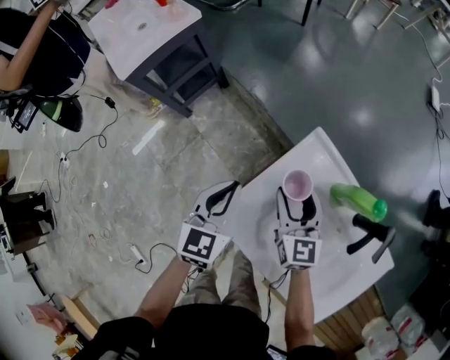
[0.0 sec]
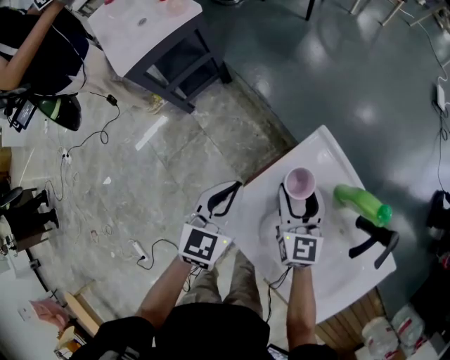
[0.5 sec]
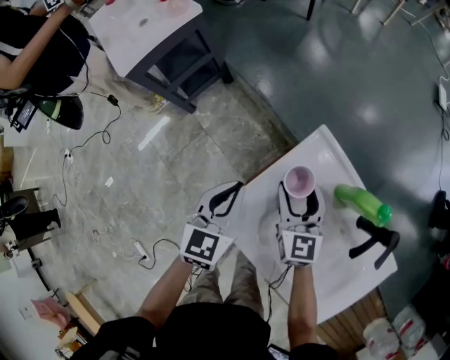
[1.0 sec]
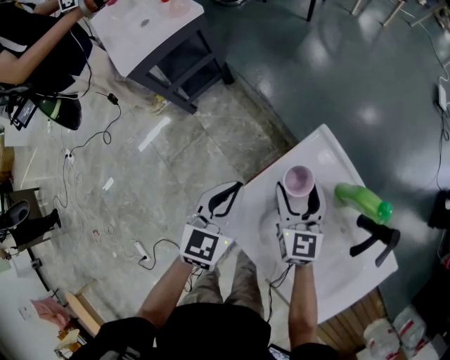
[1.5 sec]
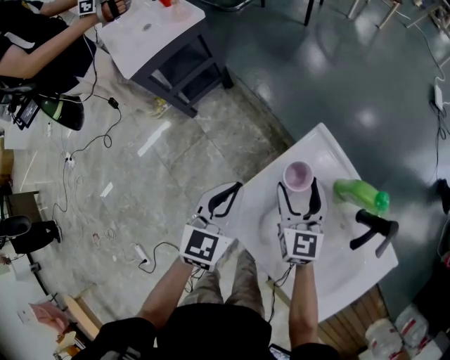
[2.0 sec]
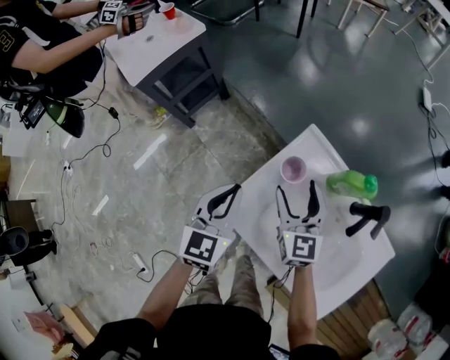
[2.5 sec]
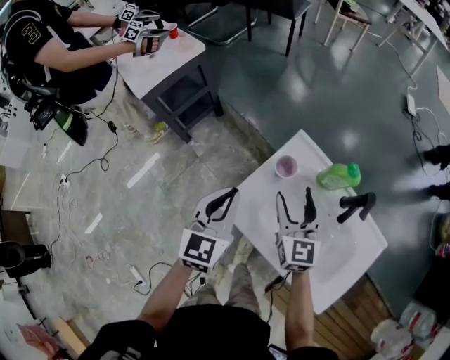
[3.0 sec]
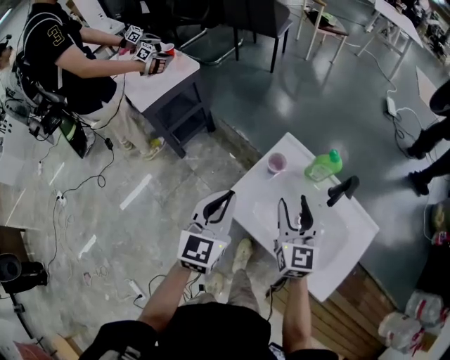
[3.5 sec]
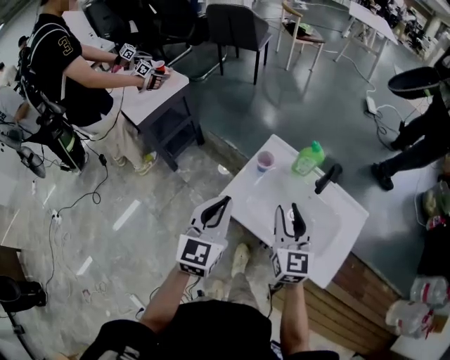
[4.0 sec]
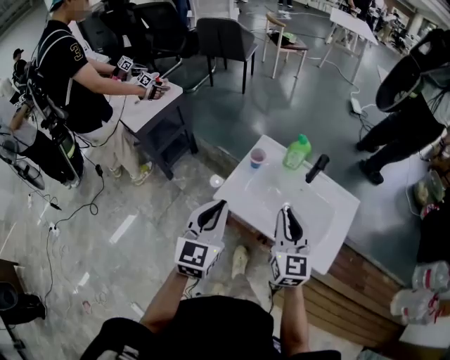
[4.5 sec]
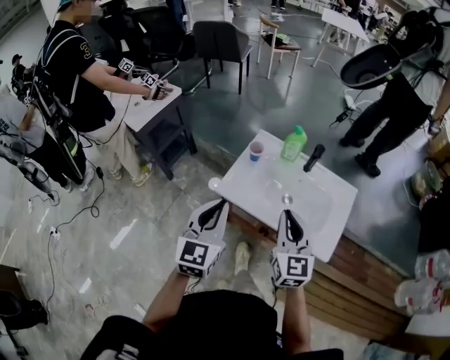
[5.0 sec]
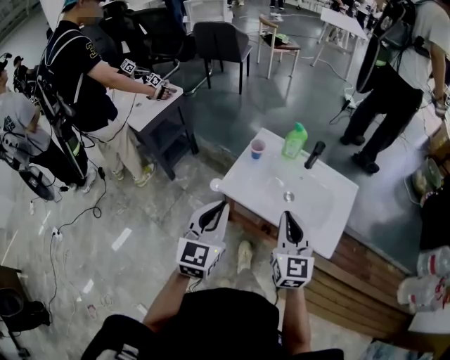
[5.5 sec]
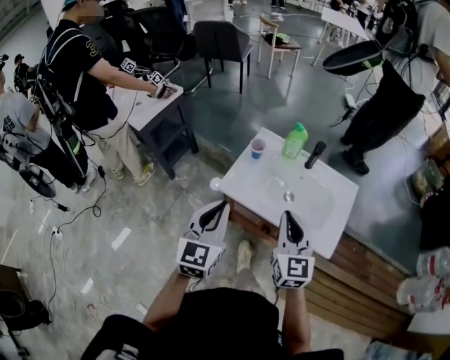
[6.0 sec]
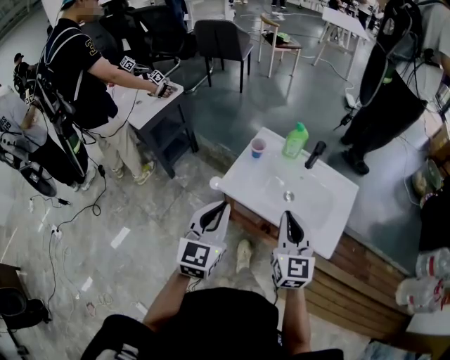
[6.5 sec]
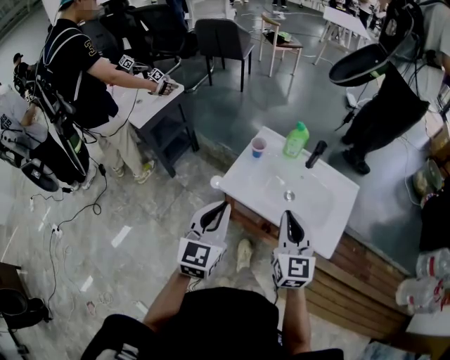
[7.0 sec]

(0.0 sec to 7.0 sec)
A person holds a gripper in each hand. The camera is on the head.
0.0 sec - 2.0 sec: The grippers make only small movements.
2.0 sec - 3.5 sec: Both grippers move upward and backward, some 20 cm.
3.5 sec - 5.0 sec: Both grippers move backward and upward, approximately 20 cm. The right gripper closes.
5.0 sec - 7.0 sec: There are only small adjustments of the grippers.

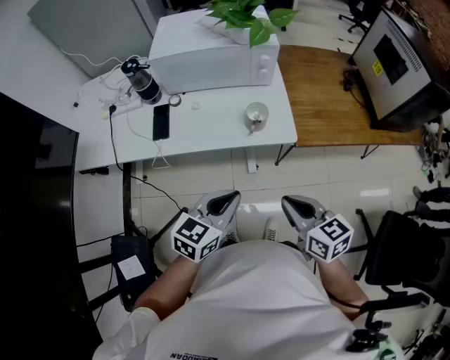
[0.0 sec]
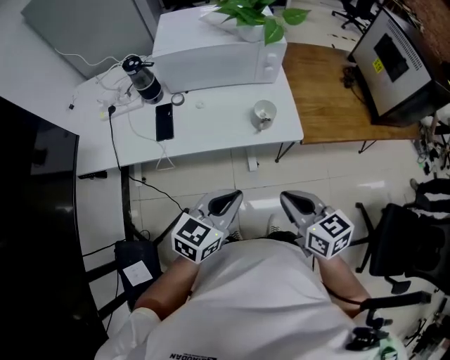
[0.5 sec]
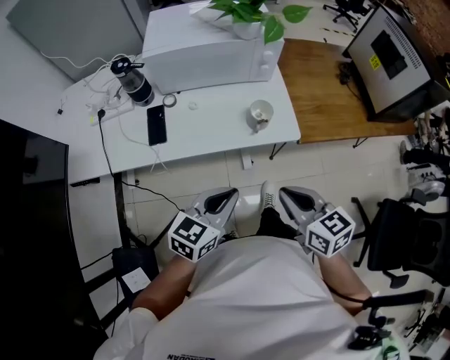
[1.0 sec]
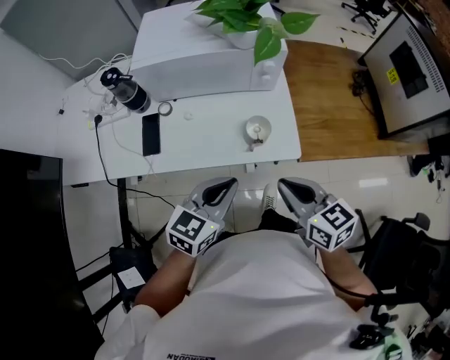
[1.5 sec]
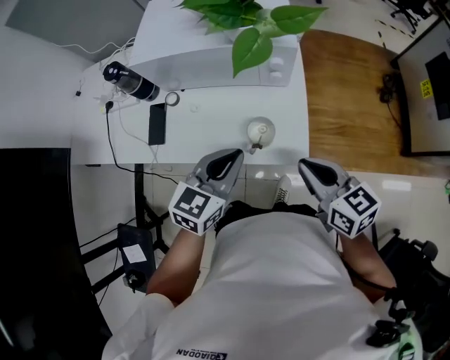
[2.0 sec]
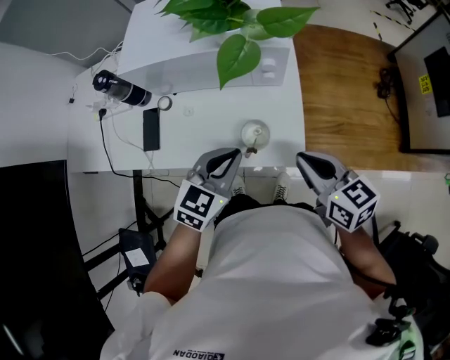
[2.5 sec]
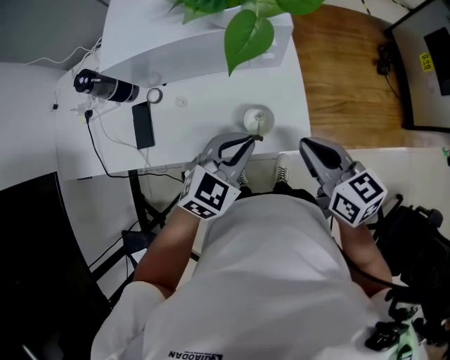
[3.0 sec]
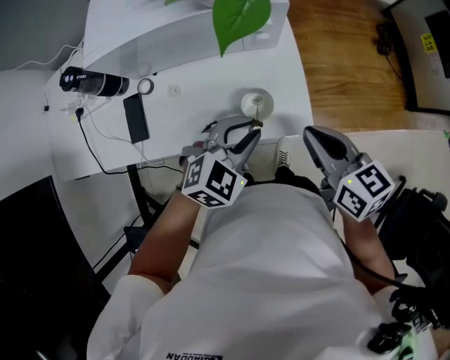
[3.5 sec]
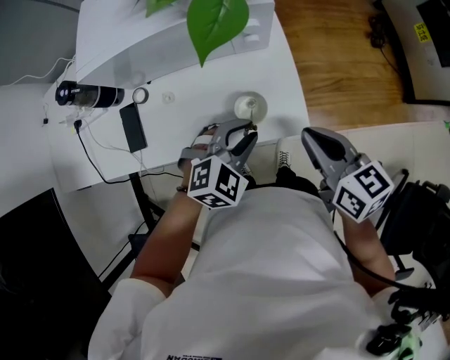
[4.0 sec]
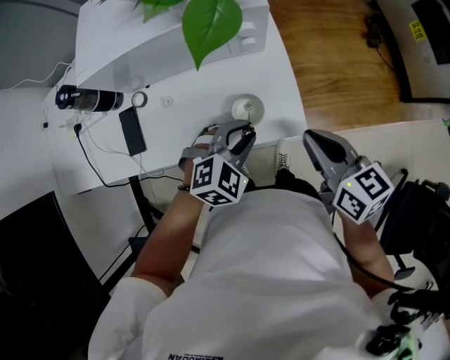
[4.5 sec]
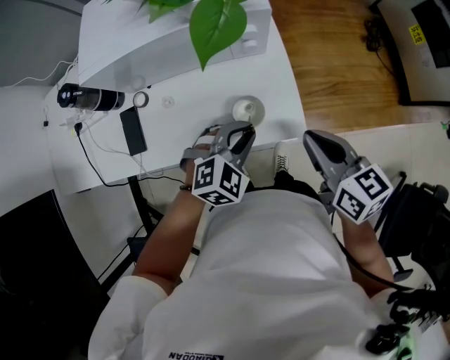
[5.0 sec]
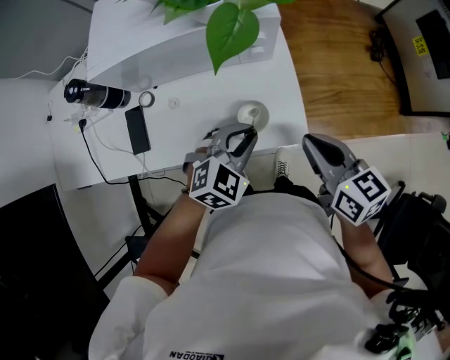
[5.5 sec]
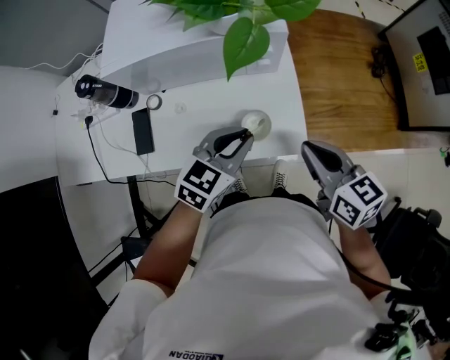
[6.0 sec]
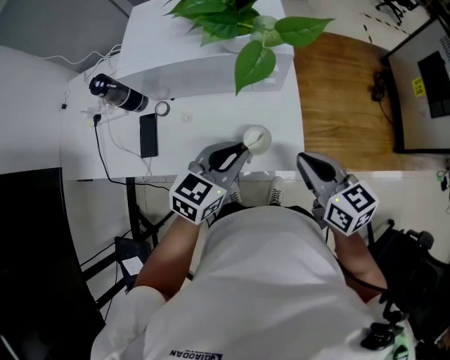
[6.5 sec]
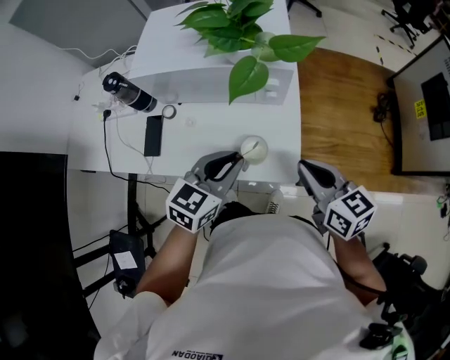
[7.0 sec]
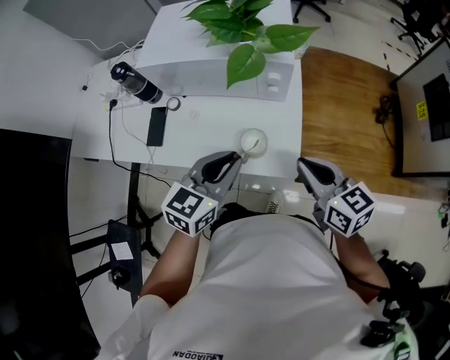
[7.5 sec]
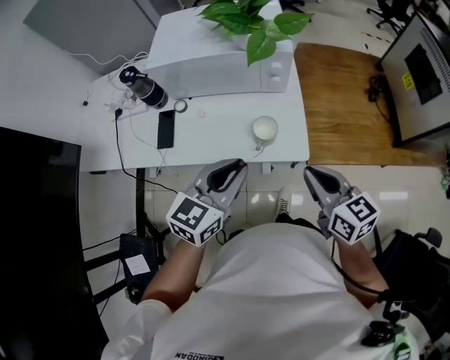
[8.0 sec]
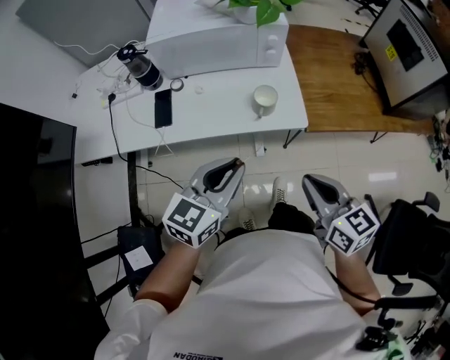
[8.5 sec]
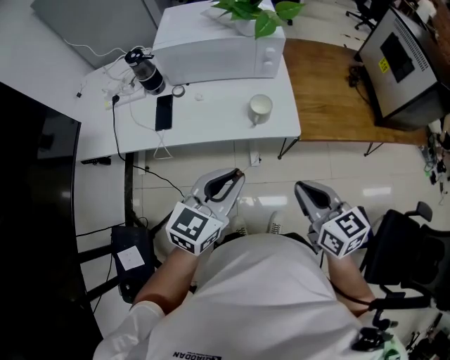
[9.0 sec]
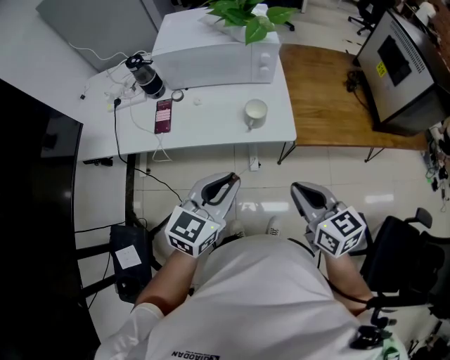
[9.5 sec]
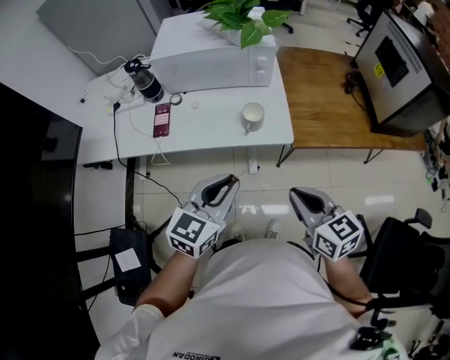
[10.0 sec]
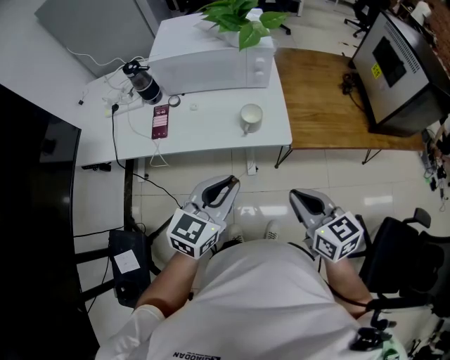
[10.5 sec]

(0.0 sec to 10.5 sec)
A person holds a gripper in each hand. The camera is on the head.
0.0 sec - 2.0 sec: The grippers both shift forward by approximately 25 cm.
2.0 sec - 4.0 sec: The left gripper heads downward, covering some 10 cm, twists roughly 40 degrees clockwise, seen from behind, and opens.
4.0 sec - 6.5 sec: The left gripper shifts approximately 10 cm upward, and turns by approximately 40 degrees.
6.5 sec - 8.5 sec: Both grippers move backward, roughly 20 cm.
8.5 sec - 10.5 sec: The left gripper ends up roughly 5 cm from where it was.

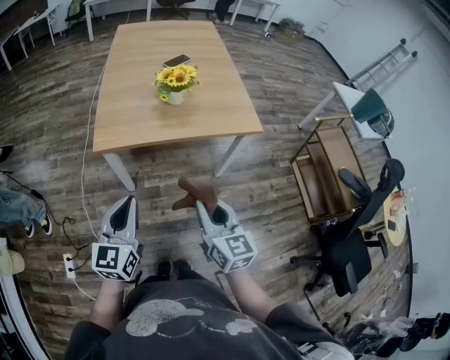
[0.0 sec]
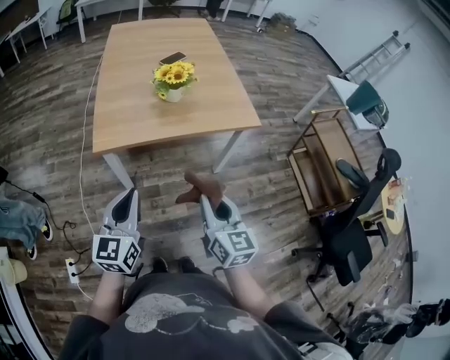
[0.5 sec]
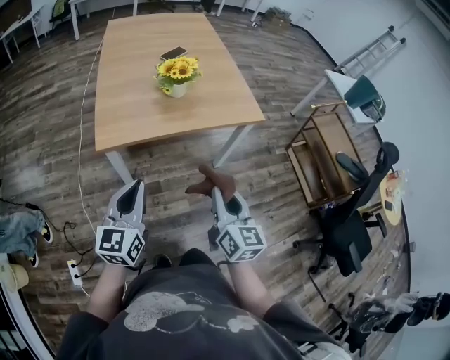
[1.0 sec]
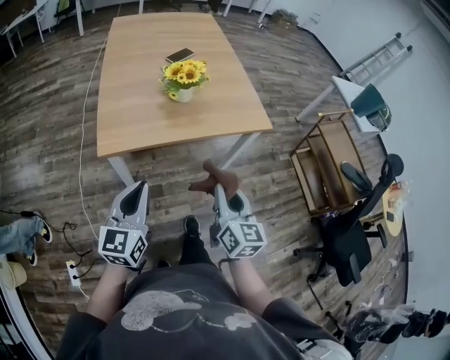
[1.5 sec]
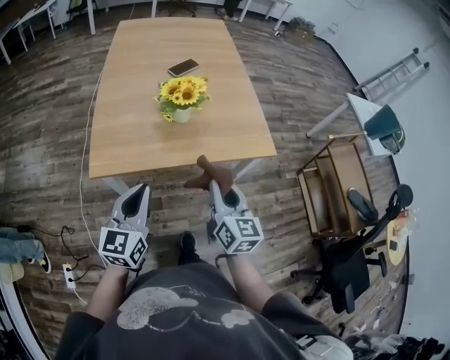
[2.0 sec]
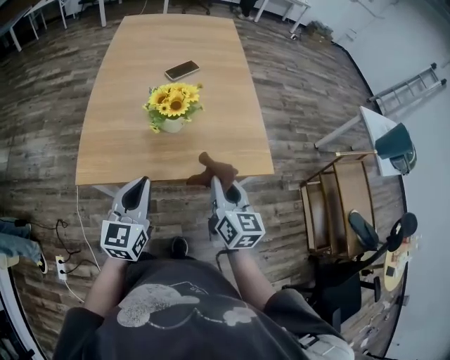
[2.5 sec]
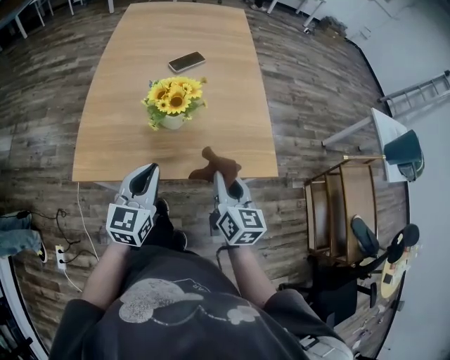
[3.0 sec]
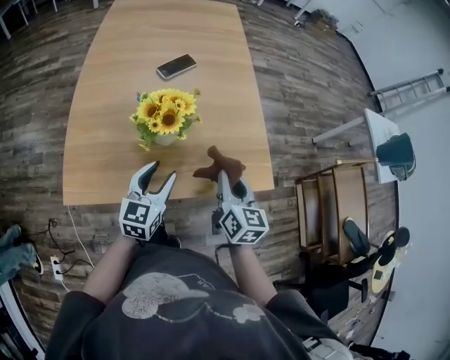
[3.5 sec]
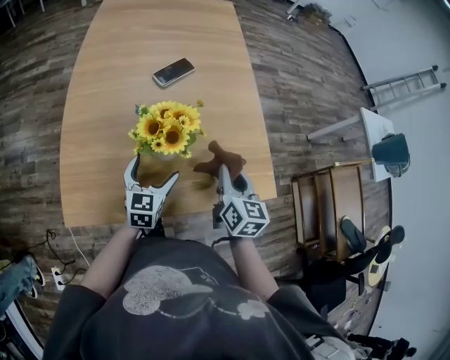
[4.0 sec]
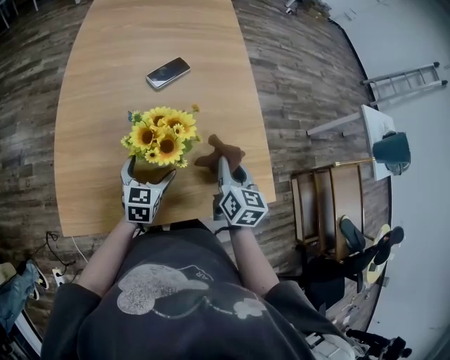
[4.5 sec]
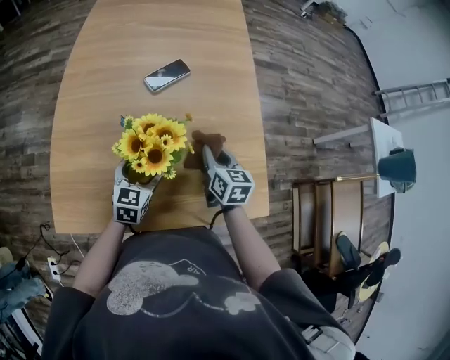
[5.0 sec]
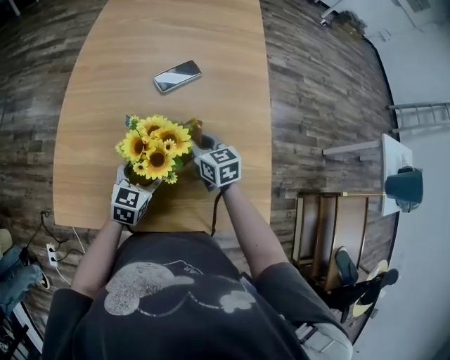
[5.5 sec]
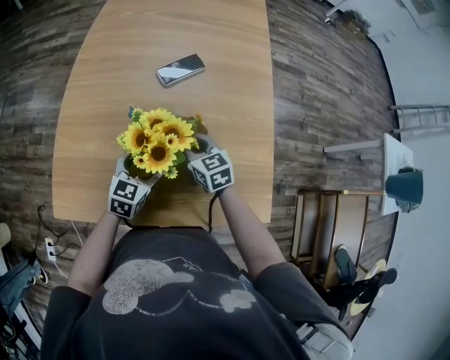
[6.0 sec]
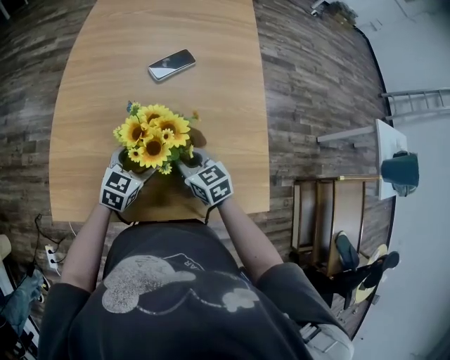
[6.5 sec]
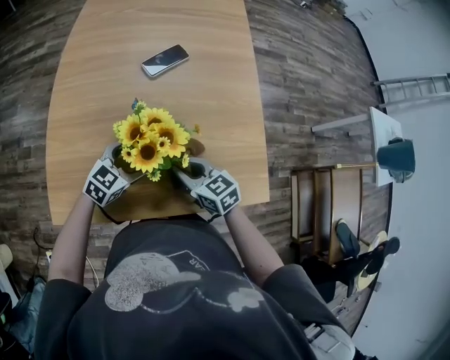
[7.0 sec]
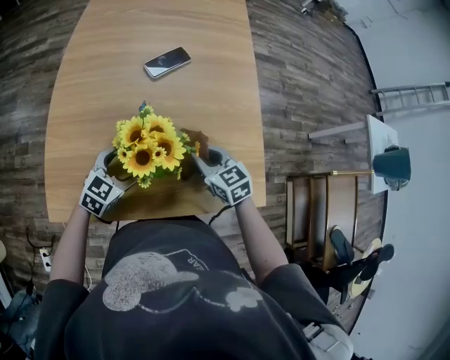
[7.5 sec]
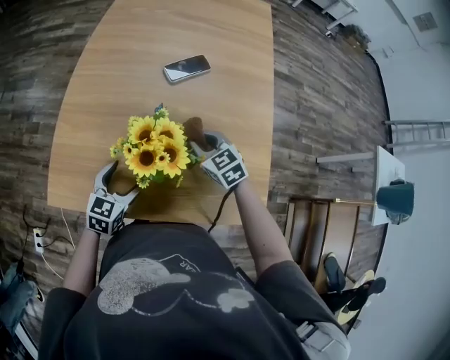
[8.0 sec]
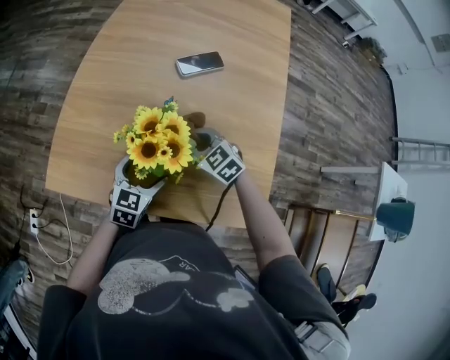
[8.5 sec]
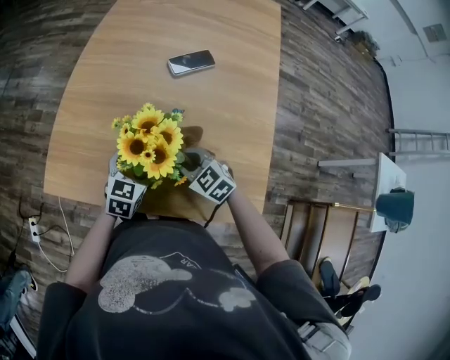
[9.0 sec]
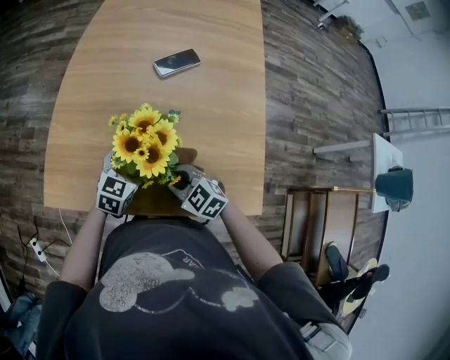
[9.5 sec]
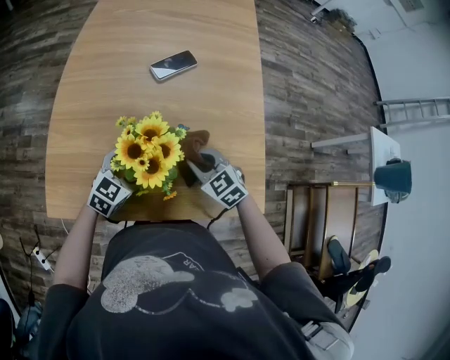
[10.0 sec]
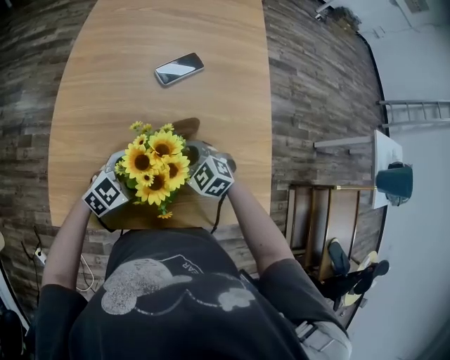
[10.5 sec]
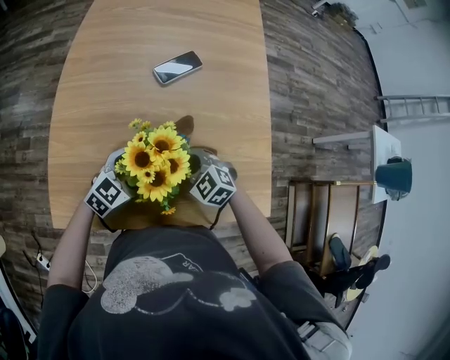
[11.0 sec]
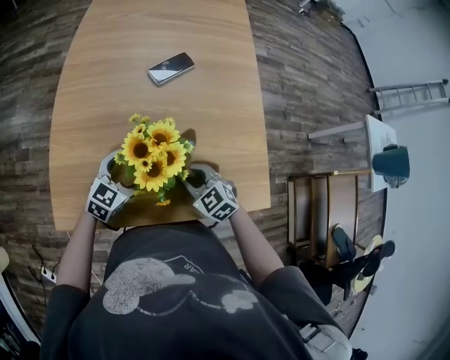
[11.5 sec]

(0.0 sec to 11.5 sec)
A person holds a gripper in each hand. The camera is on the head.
0.0 sec - 2.0 sec: The two grippers go some 20 cm forward.
2.0 sec - 4.0 sec: The left gripper travels forward and downward by about 30 cm, and opens its fingers. The right gripper goes roughly 25 cm forward.
4.0 sec - 6.0 sec: The left gripper shifts by about 5 cm. Meanwhile the right gripper goes approximately 20 cm forward, downward and to the left, and changes its angle by about 40 degrees.
6.0 sec - 7.5 sec: The left gripper moves about 5 cm. The right gripper travels backward and to the right by approximately 10 cm.
7.5 sec - 9.5 sec: The right gripper moves approximately 15 cm, and changes its angle by some 30 degrees.
